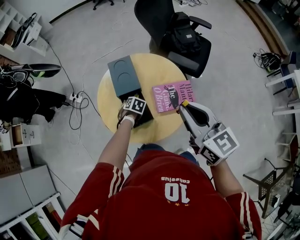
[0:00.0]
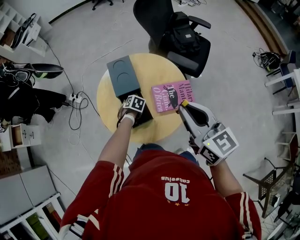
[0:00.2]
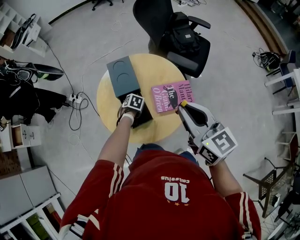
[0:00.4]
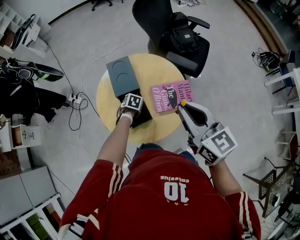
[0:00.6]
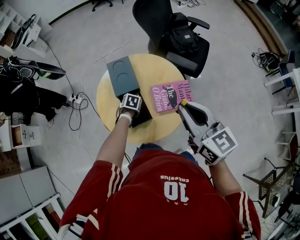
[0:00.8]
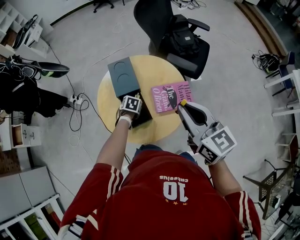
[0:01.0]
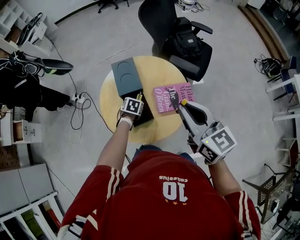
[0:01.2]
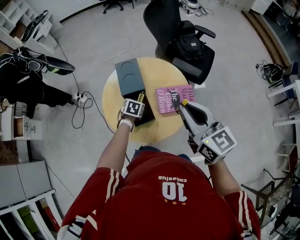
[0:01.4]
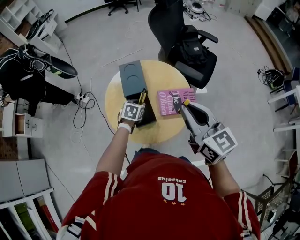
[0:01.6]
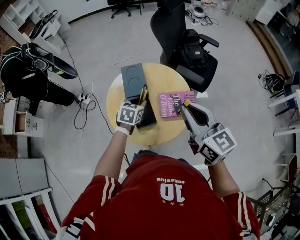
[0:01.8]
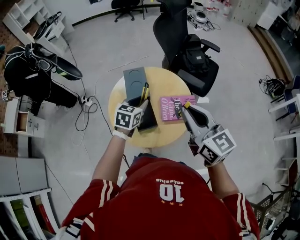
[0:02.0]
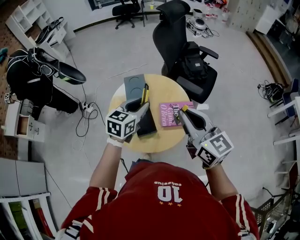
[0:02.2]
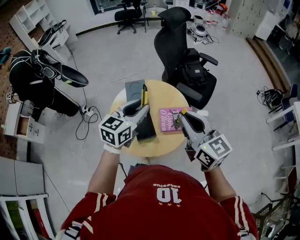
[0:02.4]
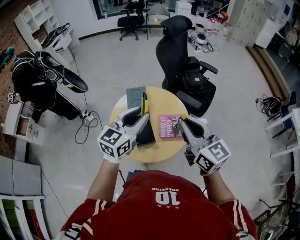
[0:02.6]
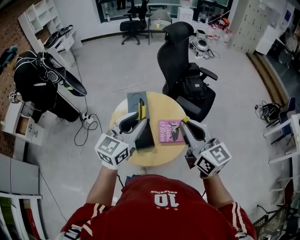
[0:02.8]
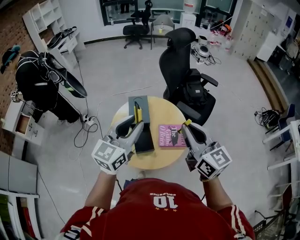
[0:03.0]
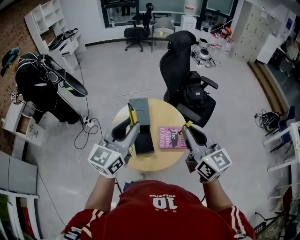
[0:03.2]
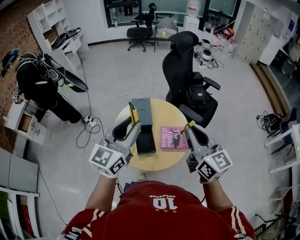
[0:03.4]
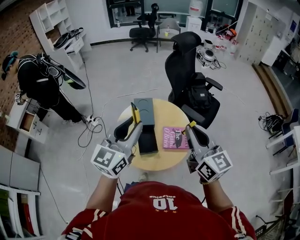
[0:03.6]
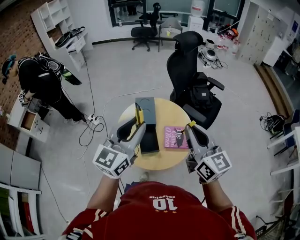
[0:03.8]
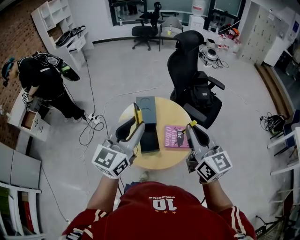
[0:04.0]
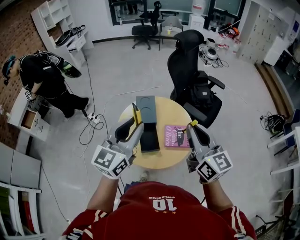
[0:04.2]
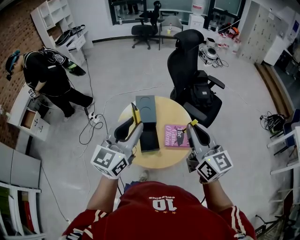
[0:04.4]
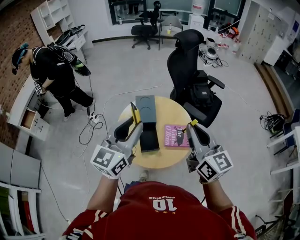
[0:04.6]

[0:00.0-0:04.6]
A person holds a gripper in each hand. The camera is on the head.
0:00.0 to 0:01.6: The left gripper travels upward by some 15 cm, and turns by roughly 20 degrees.
0:01.6 to 0:03.0: The left gripper heads upward, covering some 35 cm, and tilts its fingers approximately 50 degrees upward. Meanwhile the right gripper moves upward, roughly 5 cm.
0:03.0 to 0:04.6: There are only small adjustments of the grippers.

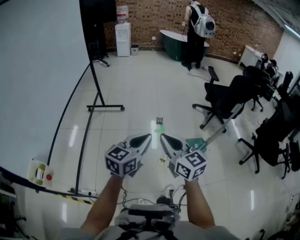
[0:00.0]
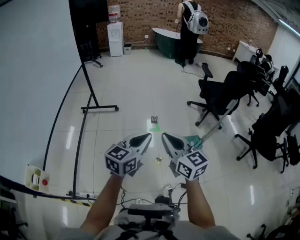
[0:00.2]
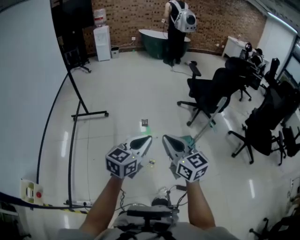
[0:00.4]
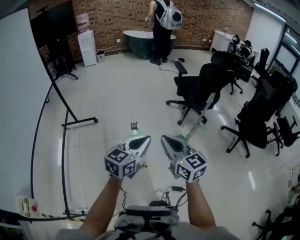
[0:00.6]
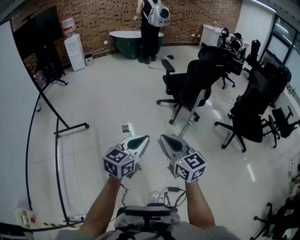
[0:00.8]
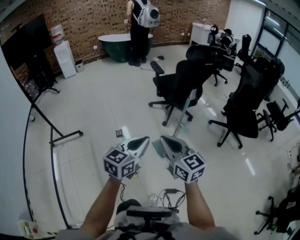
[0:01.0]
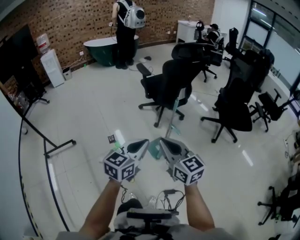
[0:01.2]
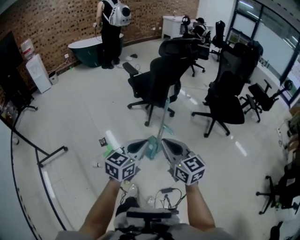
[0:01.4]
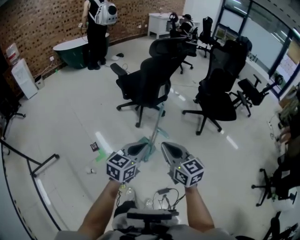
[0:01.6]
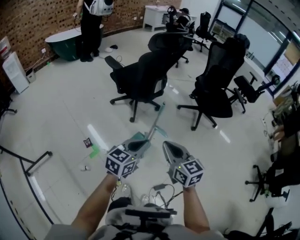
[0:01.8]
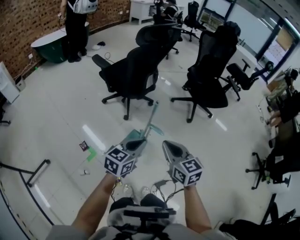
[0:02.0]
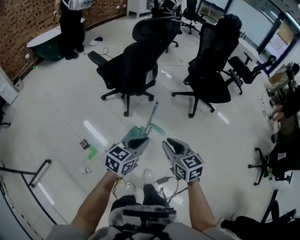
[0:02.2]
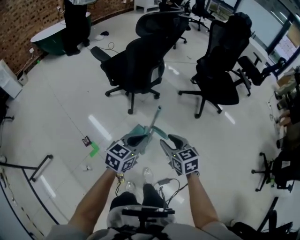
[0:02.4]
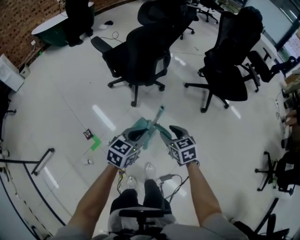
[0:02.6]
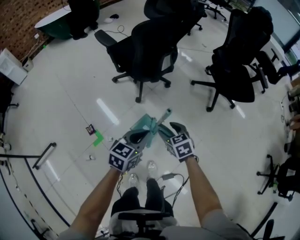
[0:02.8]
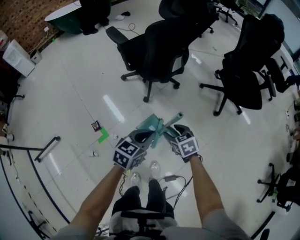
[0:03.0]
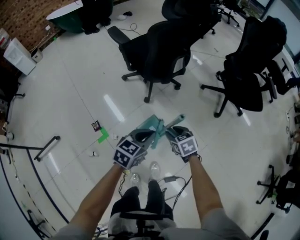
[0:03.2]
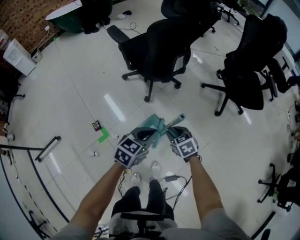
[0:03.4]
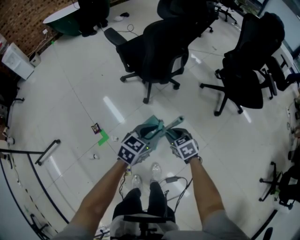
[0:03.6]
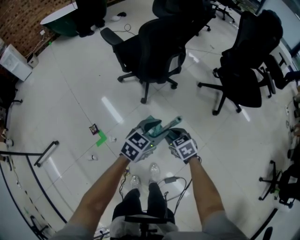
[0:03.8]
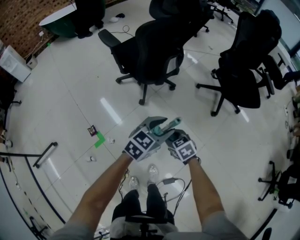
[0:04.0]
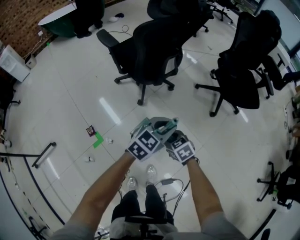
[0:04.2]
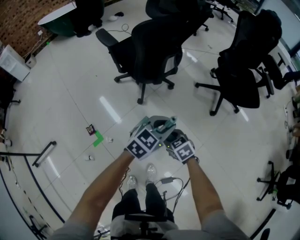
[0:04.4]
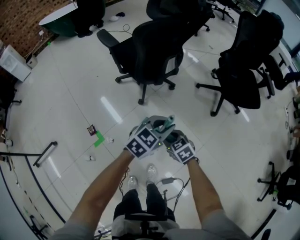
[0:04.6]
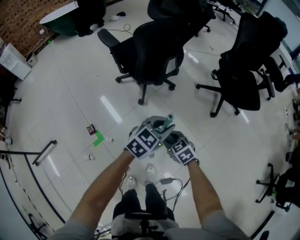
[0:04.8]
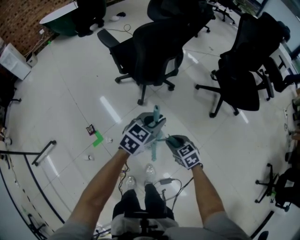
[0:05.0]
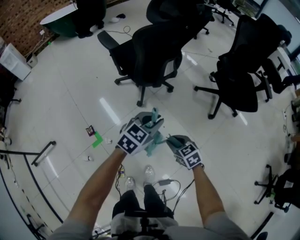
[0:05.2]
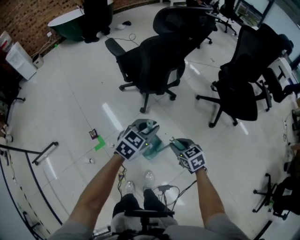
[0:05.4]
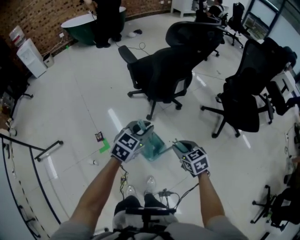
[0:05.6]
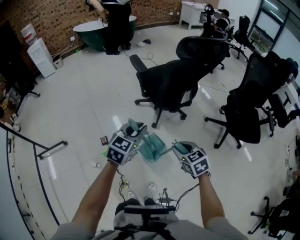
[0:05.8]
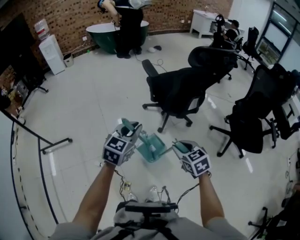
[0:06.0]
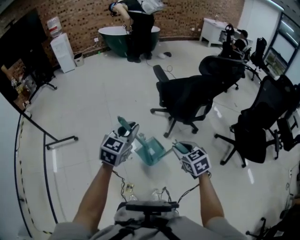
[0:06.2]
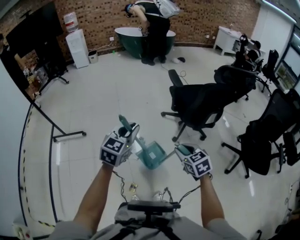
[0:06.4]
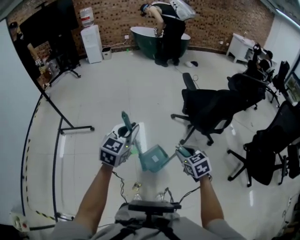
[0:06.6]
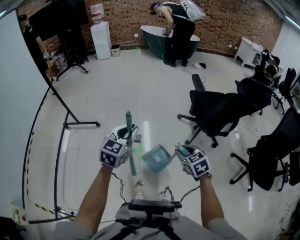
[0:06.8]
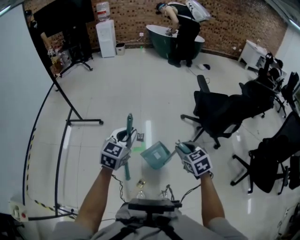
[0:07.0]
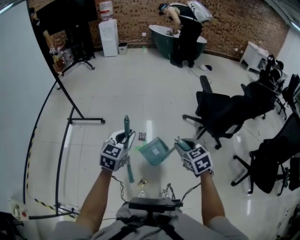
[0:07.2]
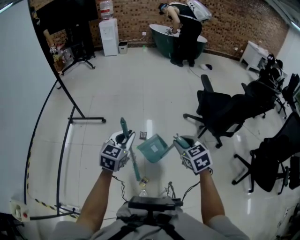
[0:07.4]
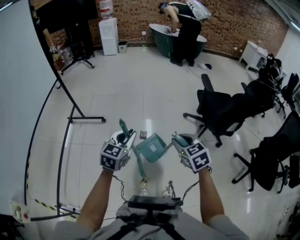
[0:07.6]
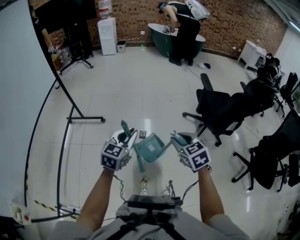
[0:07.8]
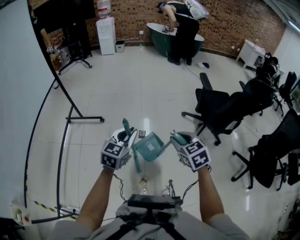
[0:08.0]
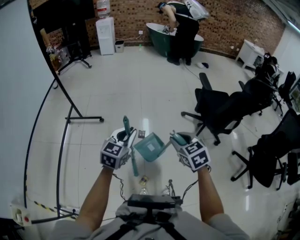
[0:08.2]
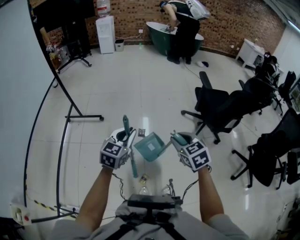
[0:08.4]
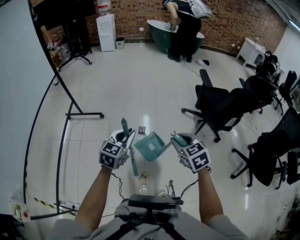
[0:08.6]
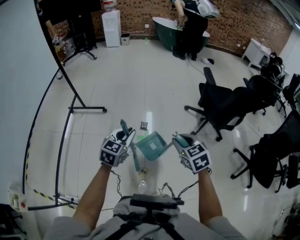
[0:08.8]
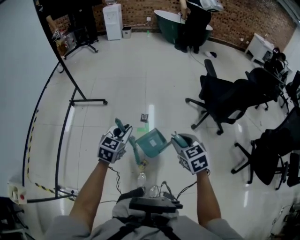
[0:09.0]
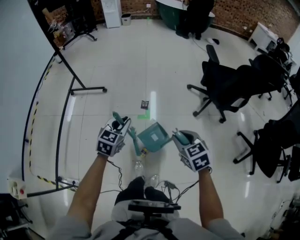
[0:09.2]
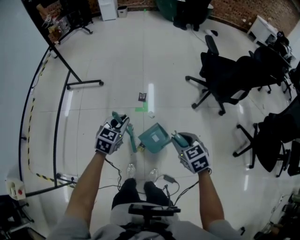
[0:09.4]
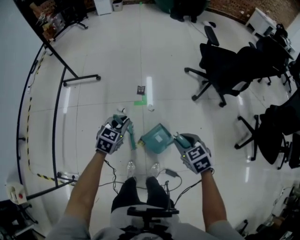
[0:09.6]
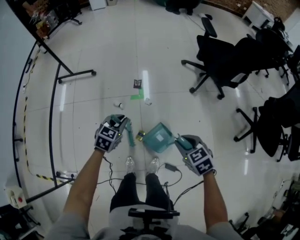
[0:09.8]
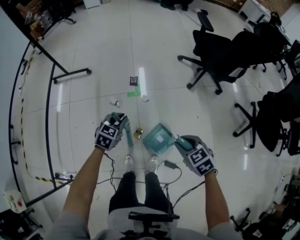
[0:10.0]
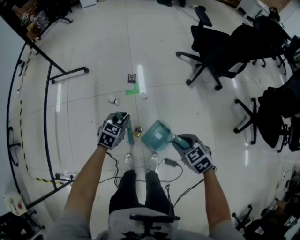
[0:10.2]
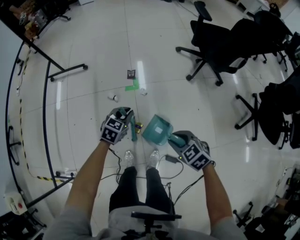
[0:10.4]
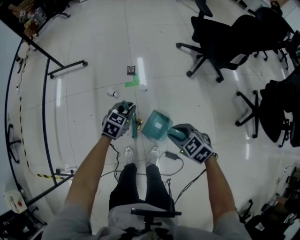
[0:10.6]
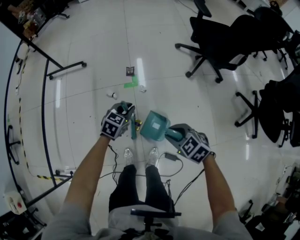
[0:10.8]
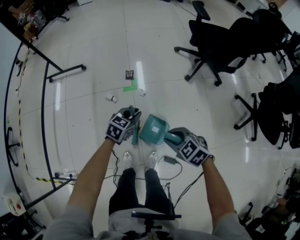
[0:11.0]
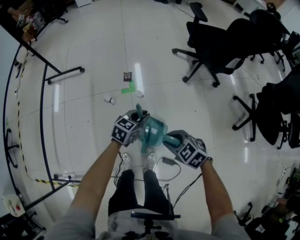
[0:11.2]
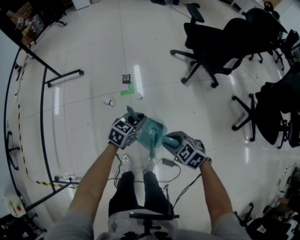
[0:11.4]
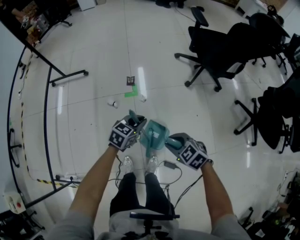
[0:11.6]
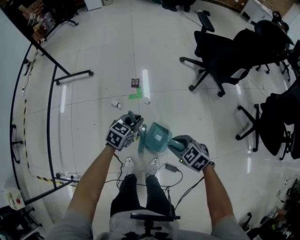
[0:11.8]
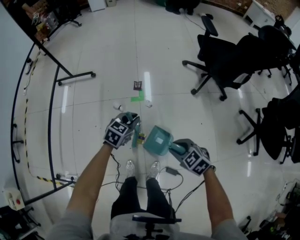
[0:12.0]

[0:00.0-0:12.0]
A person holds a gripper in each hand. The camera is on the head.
0:00.0 to 0:01.6: Both grippers are carried some 40 cm. The left gripper turns by roughly 40 degrees. Meanwhile the right gripper changes its angle by about 40 degrees.
0:01.6 to 0:03.0: The left gripper travels forward and downward by some 25 cm; the right gripper heads downward and forward, covering about 35 cm, points its fingers about 40 degrees further downward, and opens up.
0:03.0 to 0:04.4: The left gripper goes some 15 cm to the right and forward, changes its angle by some 20 degrees, and opens, then closes again, while the right gripper closes its fingers.
0:04.4 to 0:06.0: The right gripper goes about 20 cm upward, while the left gripper heads to the left and upward, covering roughly 30 cm, and changes its angle by roughly 40 degrees.
0:06.0 to 0:07.6: Both grippers travel together to the left, roughly 30 cm. The left gripper rotates some 30 degrees; the right gripper turns by about 20 degrees.
0:07.6 to 0:09.0: The right gripper travels backward by approximately 10 cm; the left gripper is displaced downward and backward by roughly 10 cm.
0:09.0 to 0:10.4: The right gripper moves downward and backward, roughly 25 cm, and turns by about 20 degrees; the left gripper travels downward by some 20 cm.
0:10.4 to 0:12.0: The left gripper travels to the right and back again, approximately 10 cm each way.

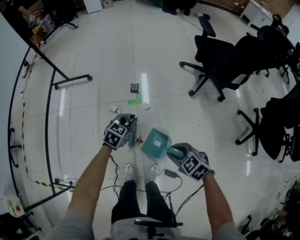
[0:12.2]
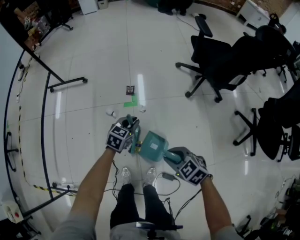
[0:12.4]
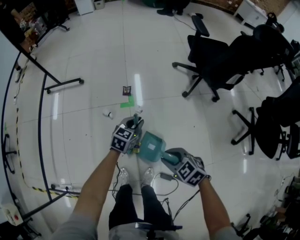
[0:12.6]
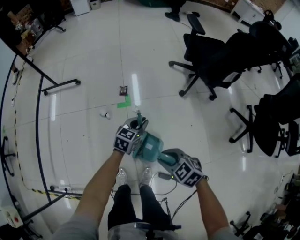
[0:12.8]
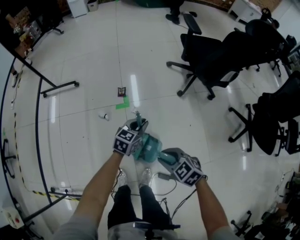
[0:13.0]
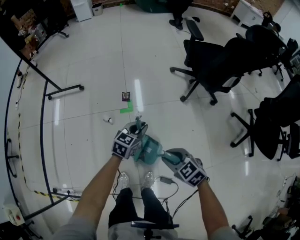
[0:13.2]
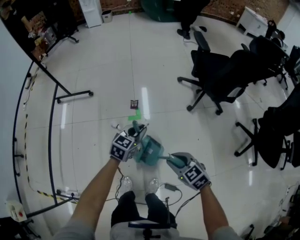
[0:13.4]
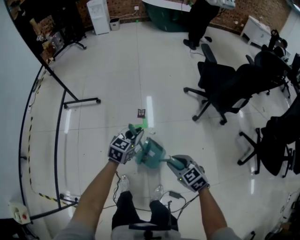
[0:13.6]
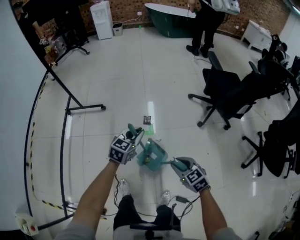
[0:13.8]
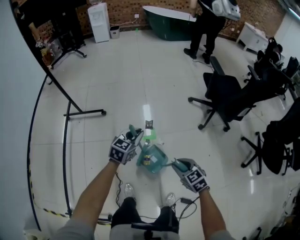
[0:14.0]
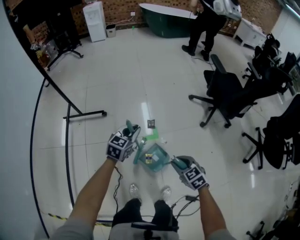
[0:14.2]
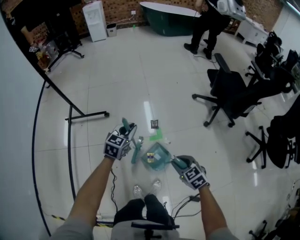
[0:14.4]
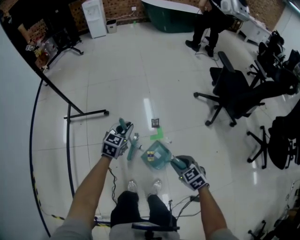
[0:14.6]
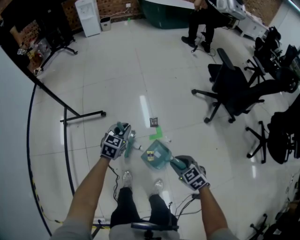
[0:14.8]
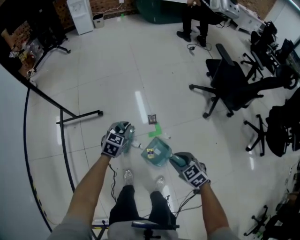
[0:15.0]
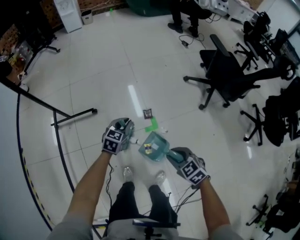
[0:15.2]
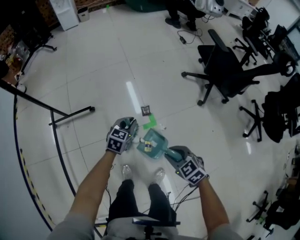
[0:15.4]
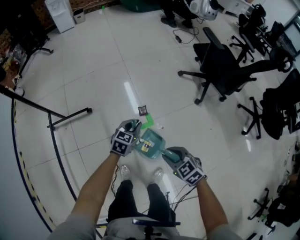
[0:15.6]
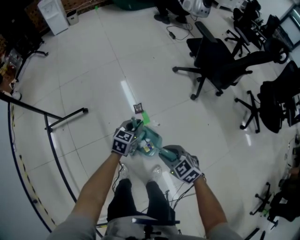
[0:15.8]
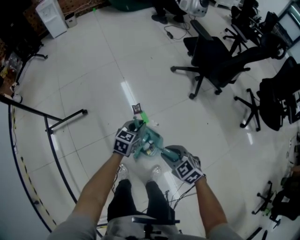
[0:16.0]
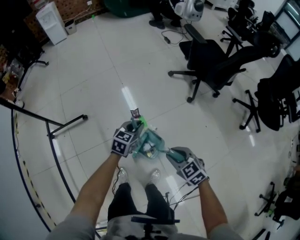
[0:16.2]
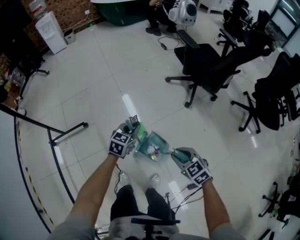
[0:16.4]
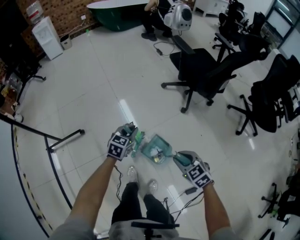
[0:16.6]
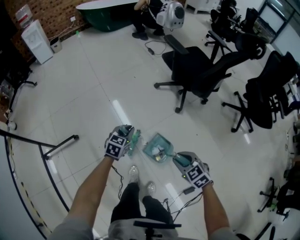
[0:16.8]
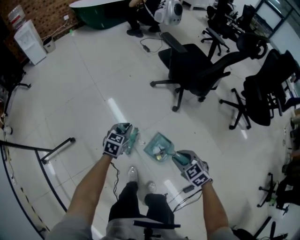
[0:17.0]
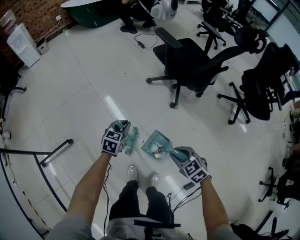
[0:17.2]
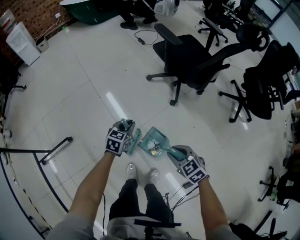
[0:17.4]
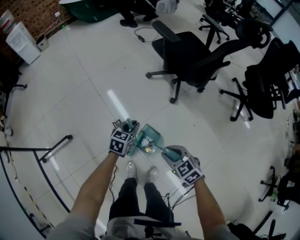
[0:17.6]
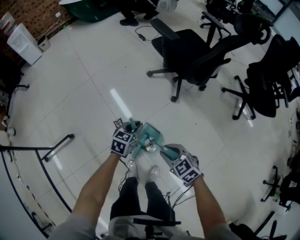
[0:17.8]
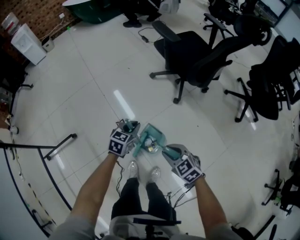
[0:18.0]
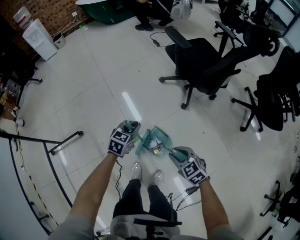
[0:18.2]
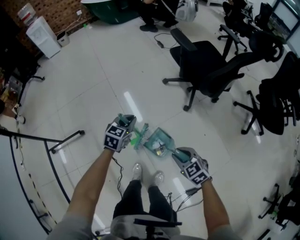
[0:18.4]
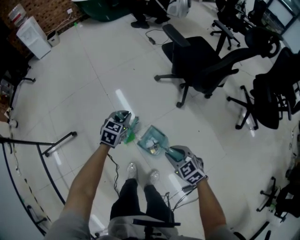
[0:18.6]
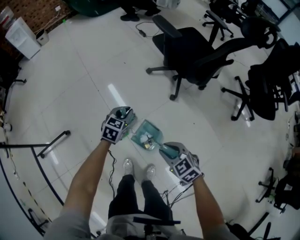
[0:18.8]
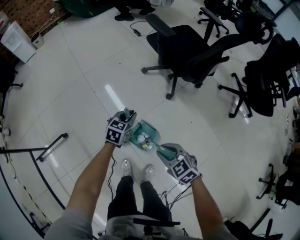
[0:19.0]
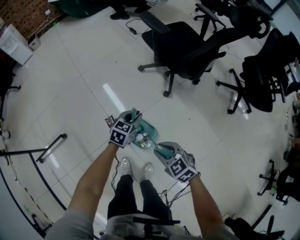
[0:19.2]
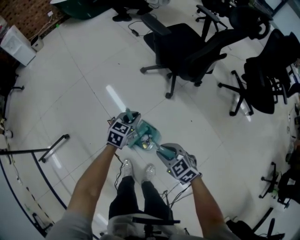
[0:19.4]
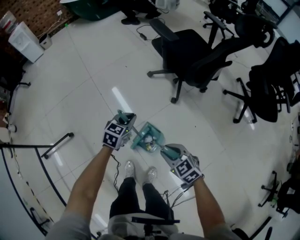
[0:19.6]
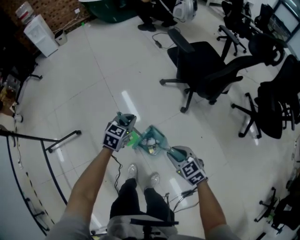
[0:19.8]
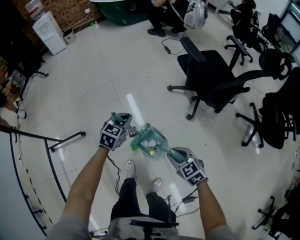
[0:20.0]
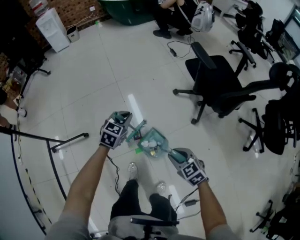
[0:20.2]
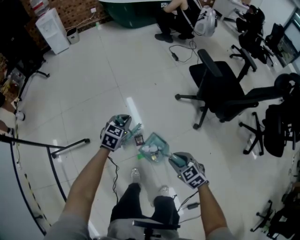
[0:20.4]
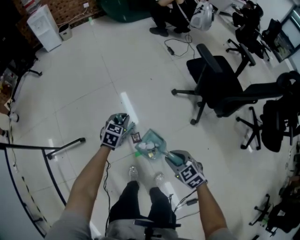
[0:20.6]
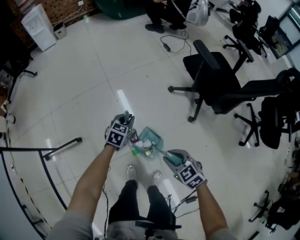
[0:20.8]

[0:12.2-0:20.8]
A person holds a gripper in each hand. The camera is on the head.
0:12.2 to 0:13.6: The left gripper is displaced upward and forward by roughly 10 cm, and moves some 15 cm to the right and comes back. The right gripper travels forward by roughly 5 cm.
0:13.6 to 0:15.0: Both grippers move to the left and forward, about 30 cm.
0:15.0 to 0:16.6: Both grippers travel together to the right, roughly 20 cm.
0:16.6 to 0:18.0: The left gripper moves to the right and forward, about 15 cm, while the right gripper moves forward, some 10 cm.
0:18.0 to 0:19.4: The left gripper is displaced to the right by roughly 5 cm.
0:19.4 to 0:20.8: The grippers both shift to the left and forward by roughly 25 cm.
